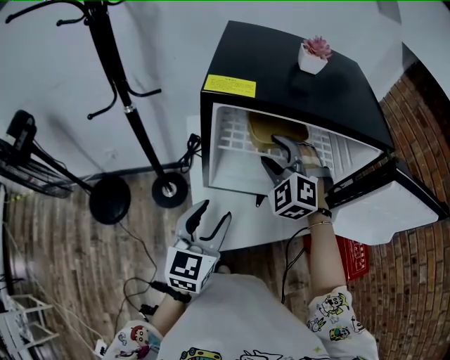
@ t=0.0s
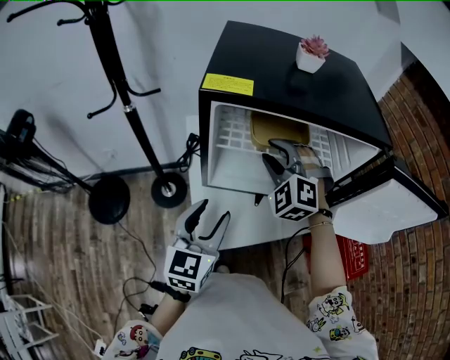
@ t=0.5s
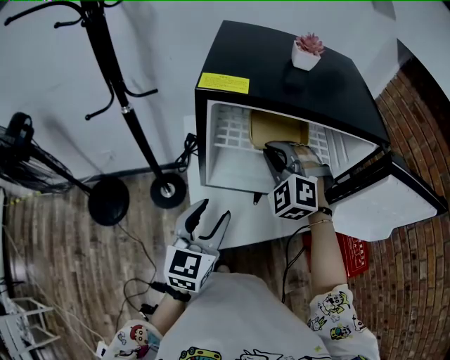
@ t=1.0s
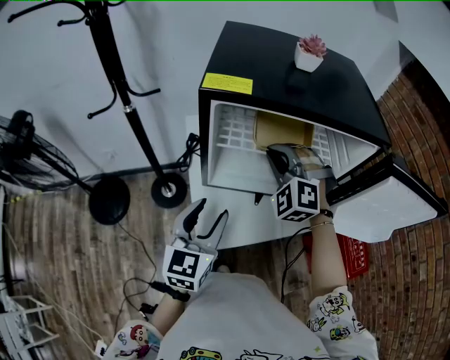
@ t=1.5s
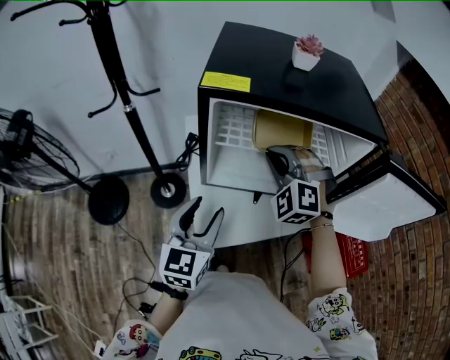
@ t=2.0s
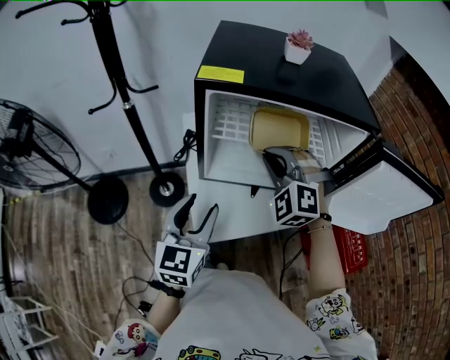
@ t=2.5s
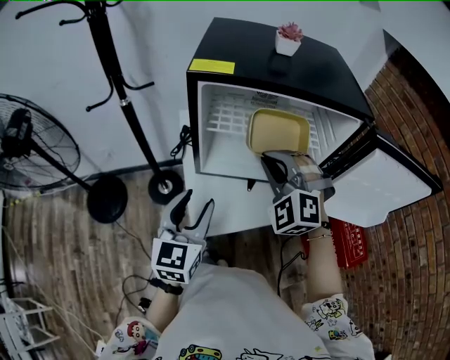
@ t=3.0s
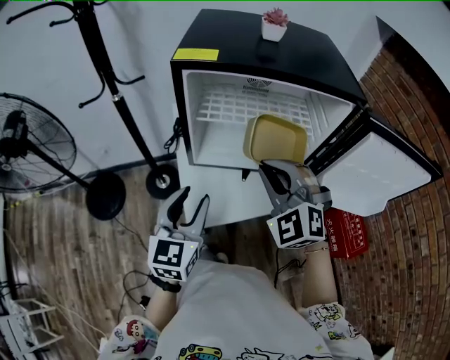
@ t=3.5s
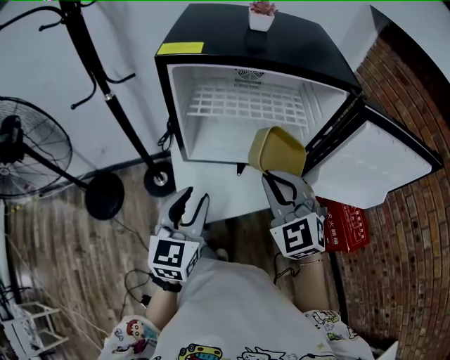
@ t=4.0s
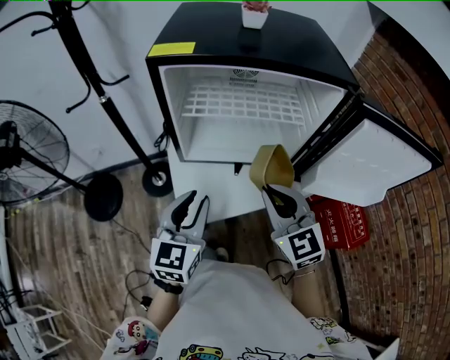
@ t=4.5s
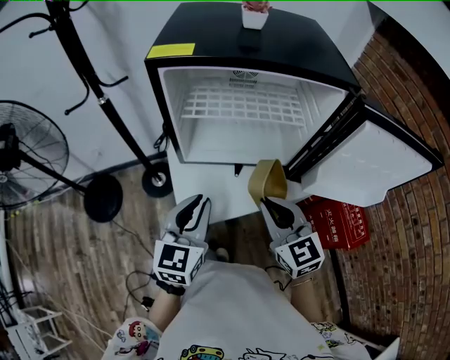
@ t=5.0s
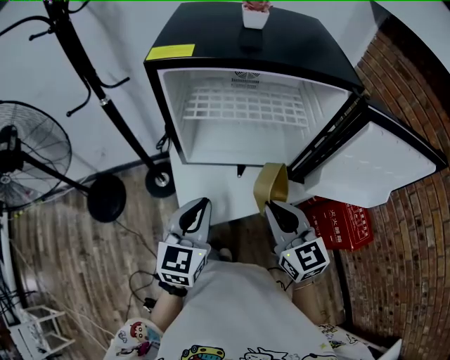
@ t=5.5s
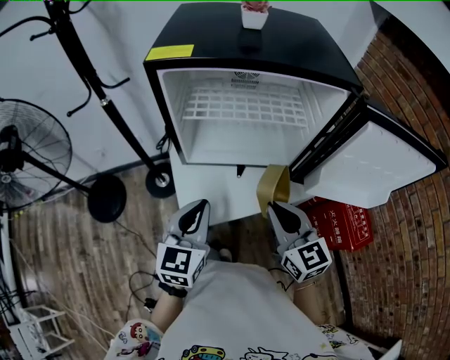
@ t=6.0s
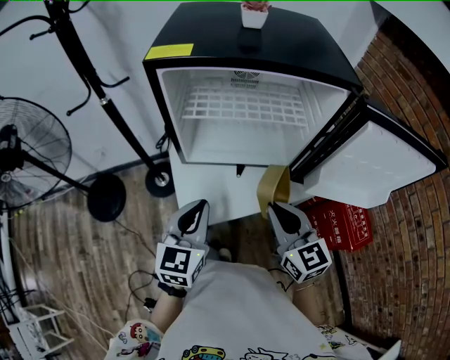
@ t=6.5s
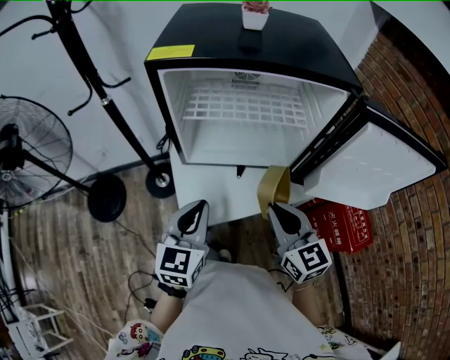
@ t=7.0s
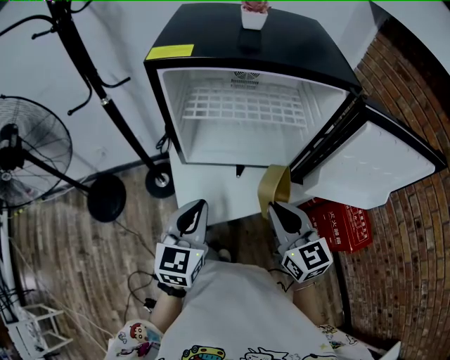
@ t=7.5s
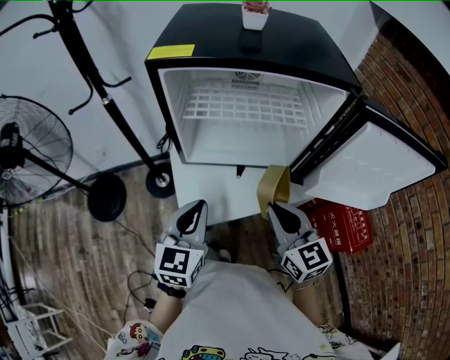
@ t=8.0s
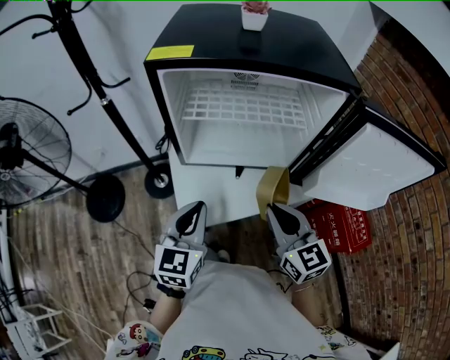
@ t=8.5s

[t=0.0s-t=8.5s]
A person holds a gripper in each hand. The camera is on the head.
t=0.0s to t=2.0s: The right gripper closes its fingers.
t=2.0s to t=4.0s: The left gripper is displaced backward by roughly 5 cm; the right gripper goes about 15 cm backward, and rotates roughly 40 degrees.
t=4.0s to t=6.5s: The right gripper is displaced downward by some 5 cm, and turns by some 40 degrees. The left gripper closes.
t=6.5s to t=8.5s: Both grippers stay put.

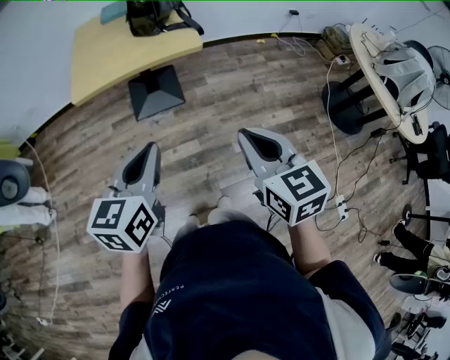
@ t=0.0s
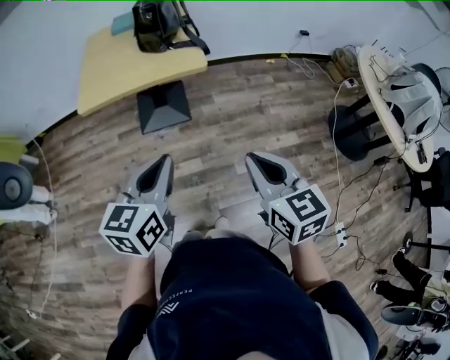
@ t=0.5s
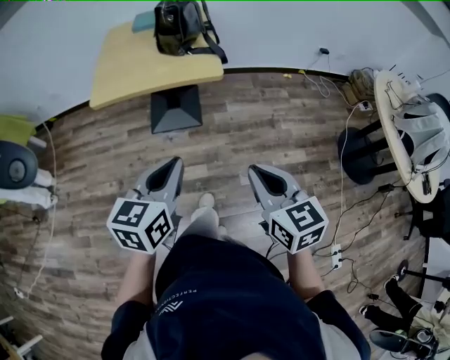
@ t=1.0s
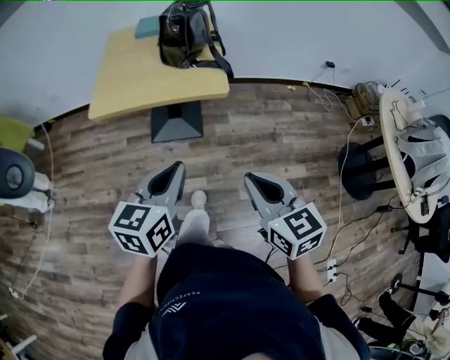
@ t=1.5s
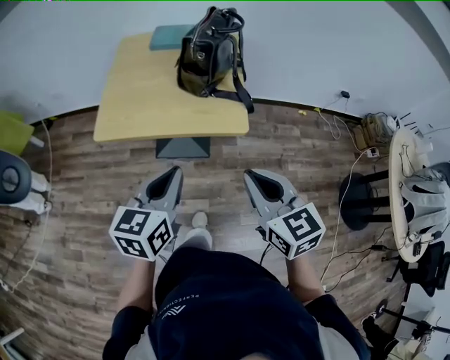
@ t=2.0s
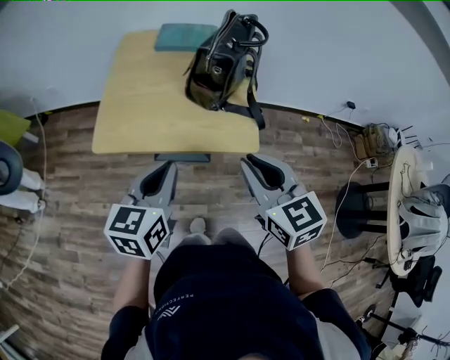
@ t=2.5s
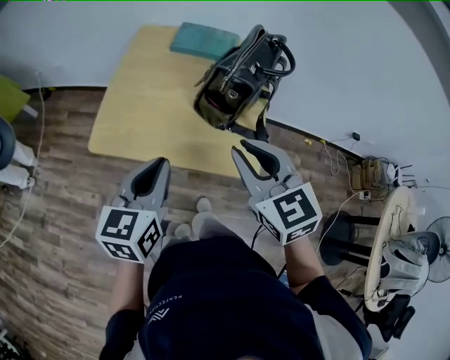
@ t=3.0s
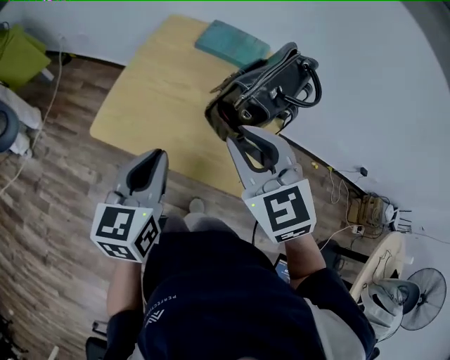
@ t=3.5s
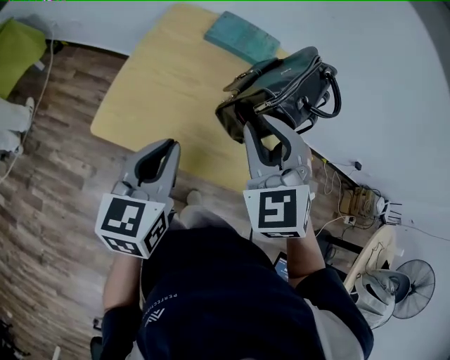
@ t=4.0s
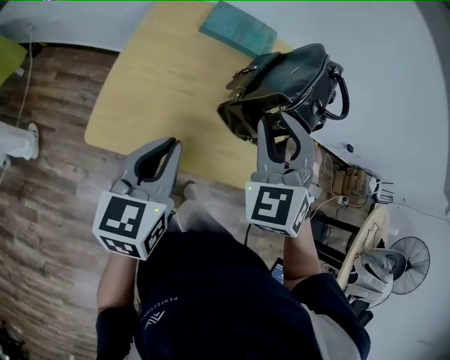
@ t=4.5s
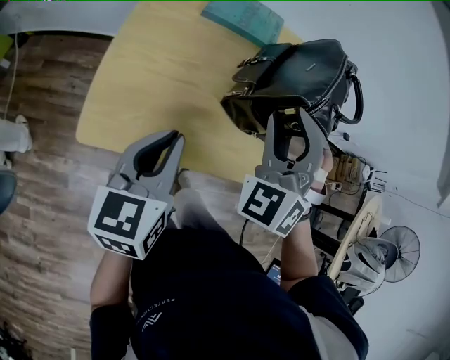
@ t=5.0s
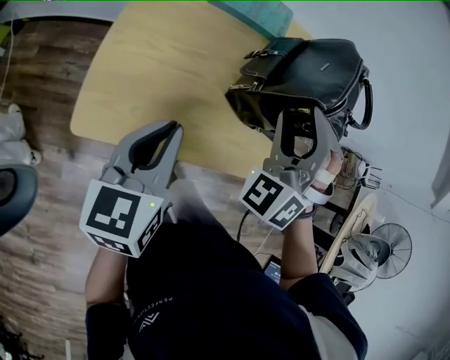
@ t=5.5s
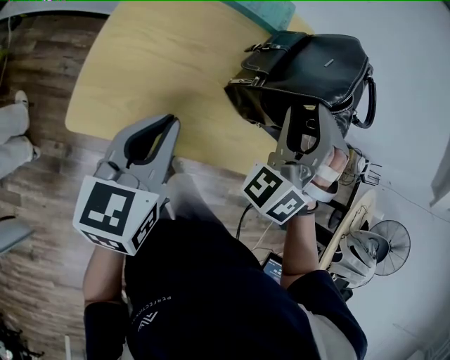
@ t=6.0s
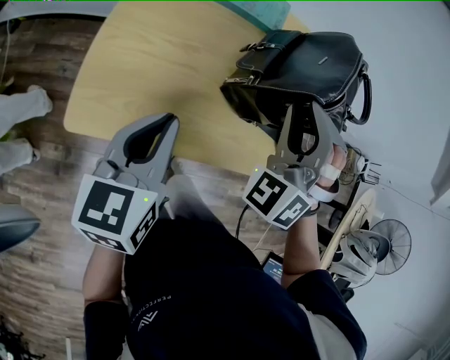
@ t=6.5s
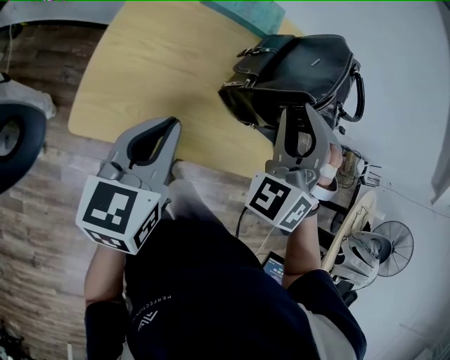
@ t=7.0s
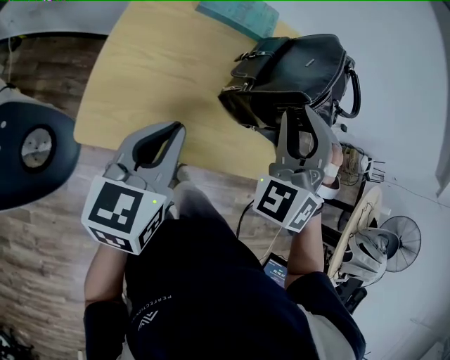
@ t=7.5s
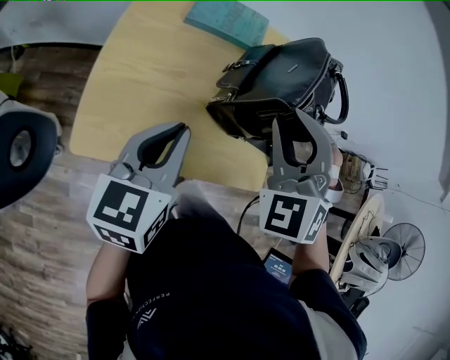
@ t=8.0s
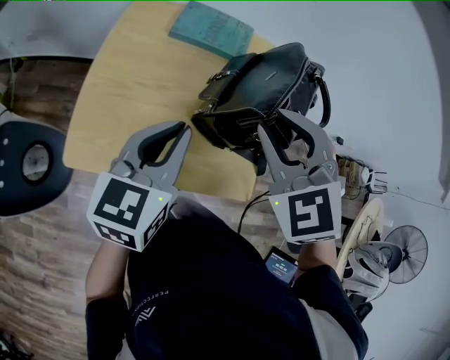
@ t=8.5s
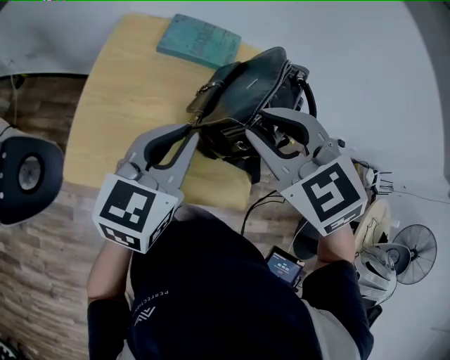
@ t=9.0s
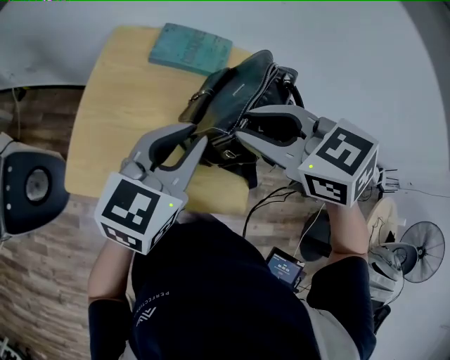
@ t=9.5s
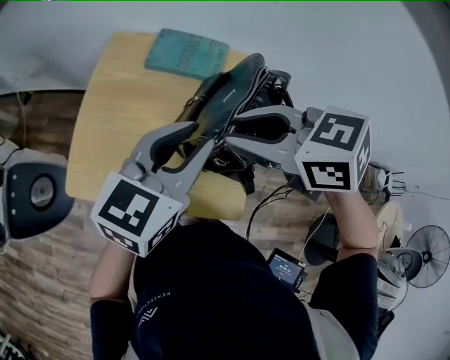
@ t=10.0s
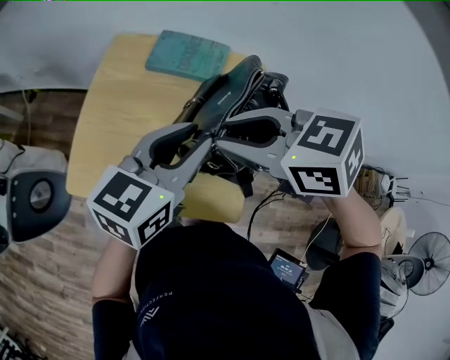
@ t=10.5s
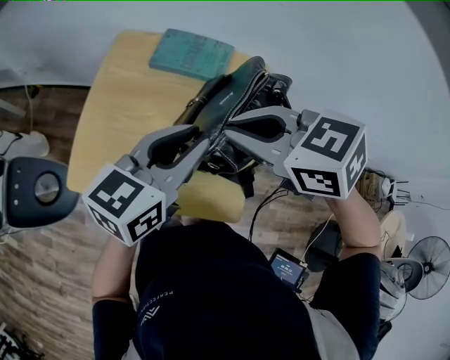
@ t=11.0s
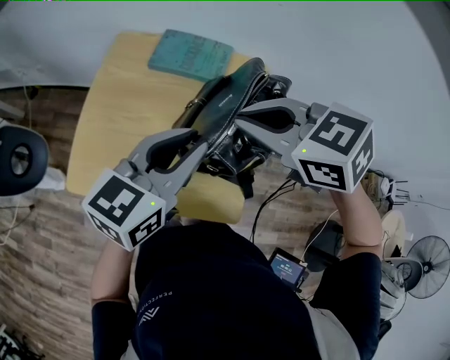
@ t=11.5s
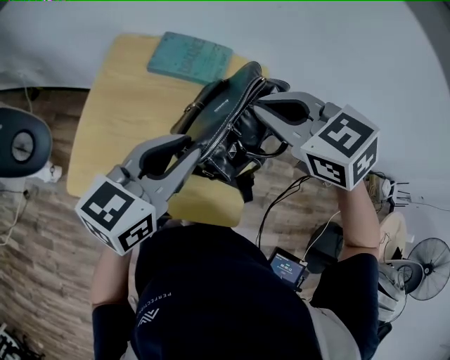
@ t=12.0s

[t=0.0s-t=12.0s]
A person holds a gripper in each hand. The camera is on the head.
t=0.0s to t=2.0s: The grippers both shift forward by about 25 cm.
t=2.0s to t=4.0s: Both grippers travel together forward, approximately 25 cm. The left gripper rotates some 20 degrees. The right gripper rotates around the line of its fingers by approximately 40 degrees, counterclockwise from behind, and opens its fingers.
t=4.0s to t=6.0s: The right gripper shifts by some 5 cm, turns by approximately 50 degrees, and opens; the left gripper moves roughly 10 cm.
t=6.0s to t=8.0s: The left gripper moves some 5 cm. The right gripper swivels roughly 30 degrees, and closes.
t=8.0s to t=10.0s: The left gripper moves roughly 15 cm. Meanwhile the right gripper changes its angle by about 70 degrees.
t=10.0s to t=12.0s: The right gripper is displaced to the right and forward by roughly 10 cm, and closes.

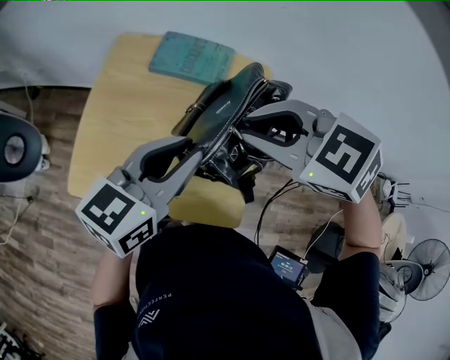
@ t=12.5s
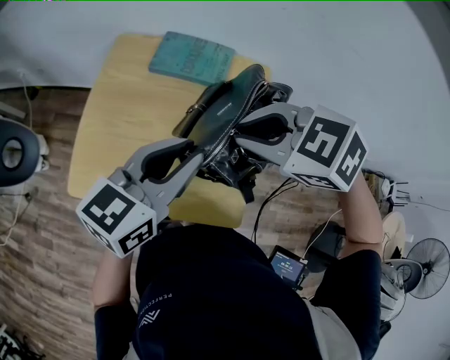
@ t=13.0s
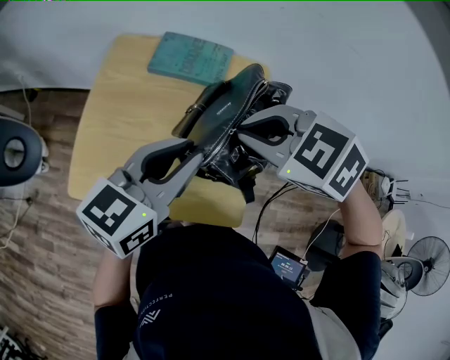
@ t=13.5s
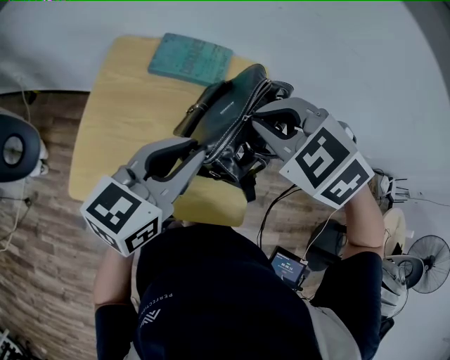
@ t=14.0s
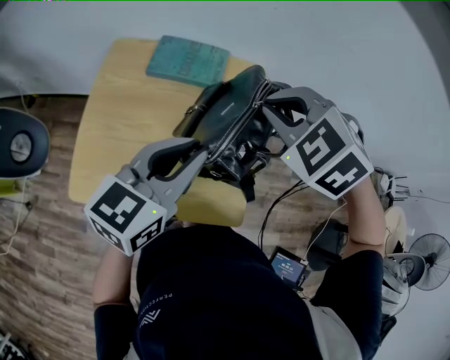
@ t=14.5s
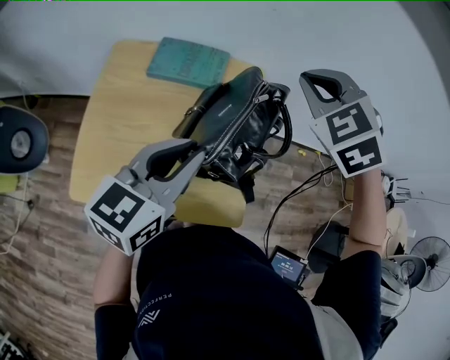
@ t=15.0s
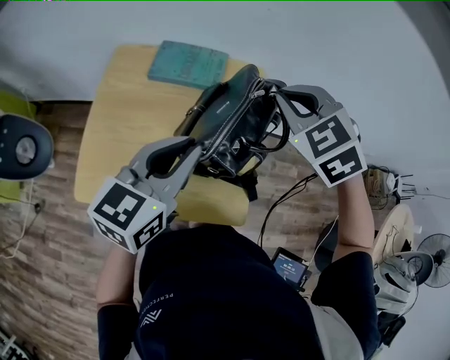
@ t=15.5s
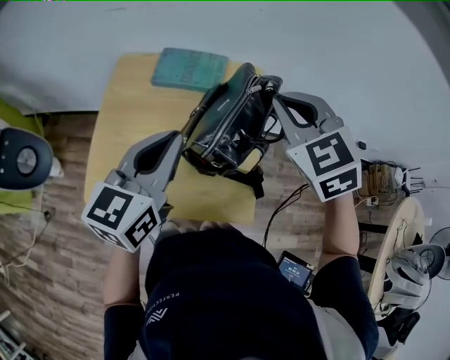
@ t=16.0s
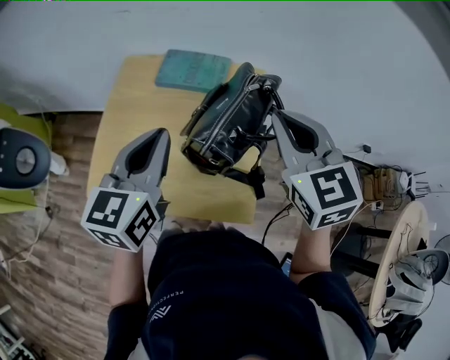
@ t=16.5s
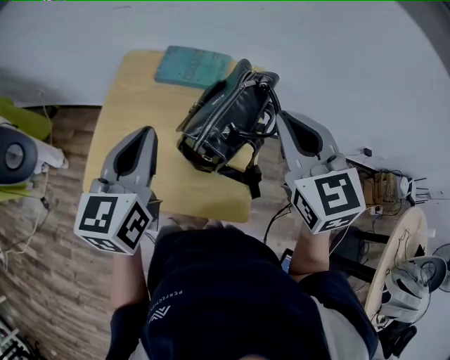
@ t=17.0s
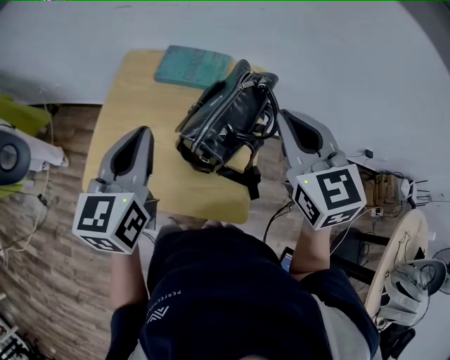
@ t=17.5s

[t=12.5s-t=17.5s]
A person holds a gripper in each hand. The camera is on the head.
t=12.5s to t=15.0s: The right gripper shifts by approximately 15 cm, and changes its angle by roughly 40 degrees.
t=15.0s to t=17.5s: The right gripper moves backward, about 10 cm, and rotates about 40 degrees. The left gripper heads to the left, covering some 5 cm, and changes its angle by about 30 degrees.

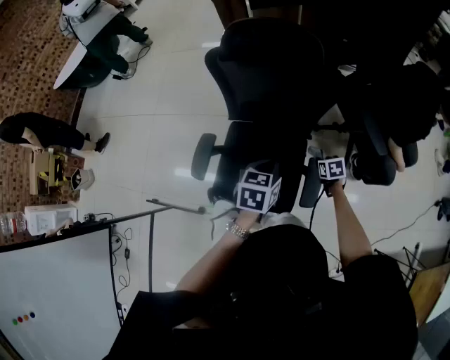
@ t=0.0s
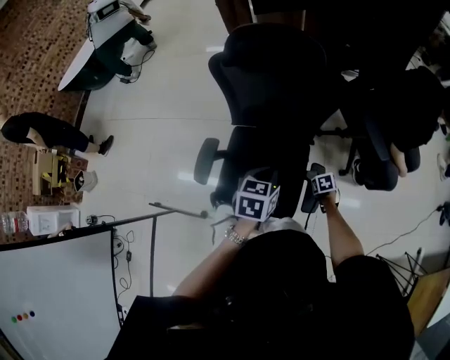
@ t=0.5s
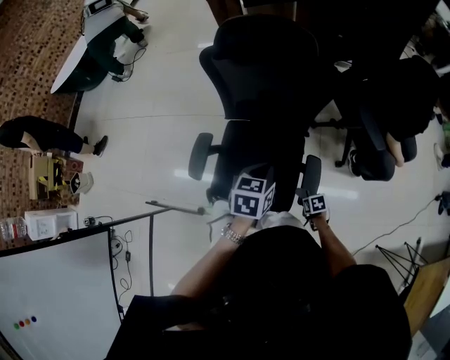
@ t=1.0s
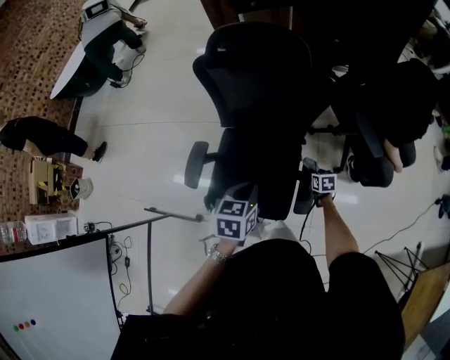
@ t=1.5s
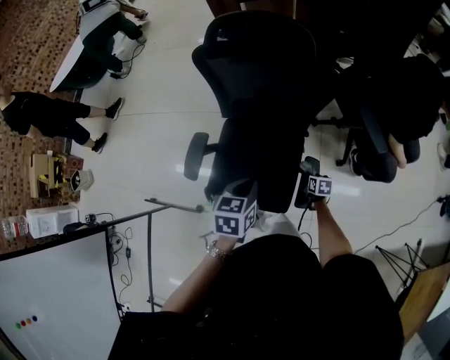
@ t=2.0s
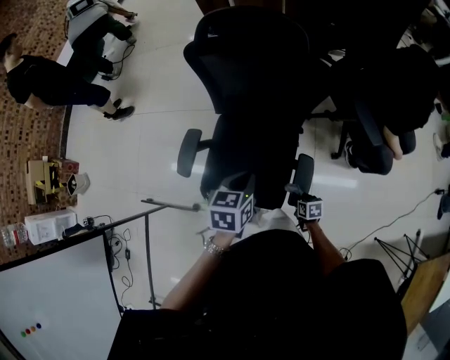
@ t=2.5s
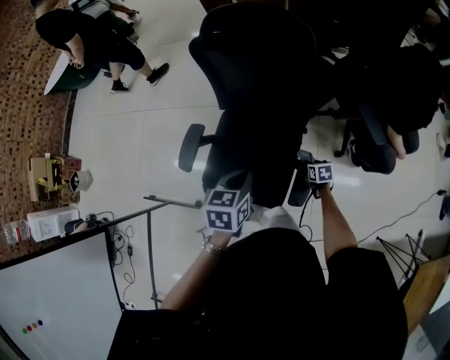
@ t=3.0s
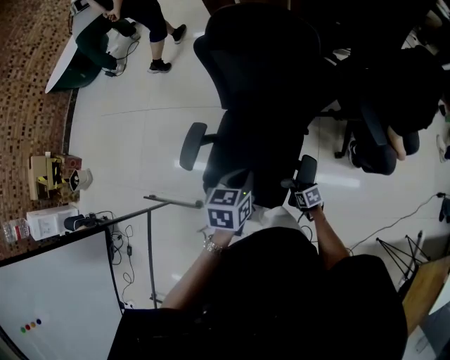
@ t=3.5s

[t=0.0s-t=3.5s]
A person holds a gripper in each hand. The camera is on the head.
t=0.0s to t=2.0s: The left gripper changes place by roughly 5 cm, while the right gripper is displaced downward by approximately 10 cm.
t=2.0s to t=3.5s: The right gripper goes forward and backward, some 10 cm each way, reversing 2 times, and changes its angle by roughly 30 degrees.
